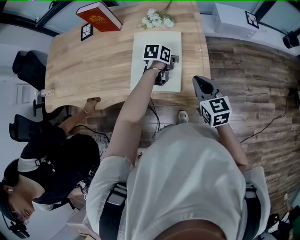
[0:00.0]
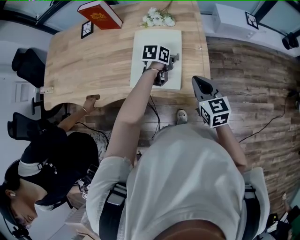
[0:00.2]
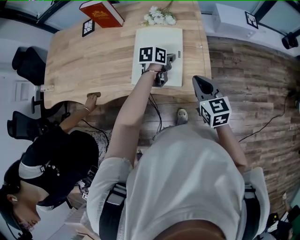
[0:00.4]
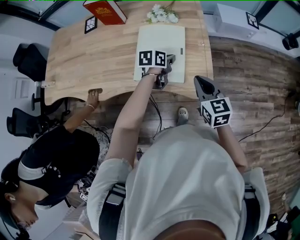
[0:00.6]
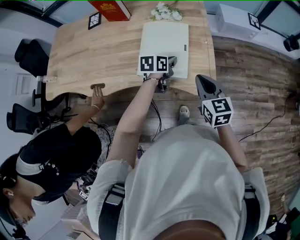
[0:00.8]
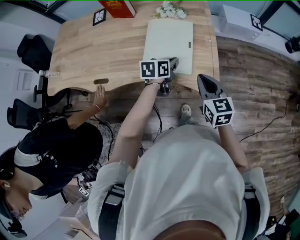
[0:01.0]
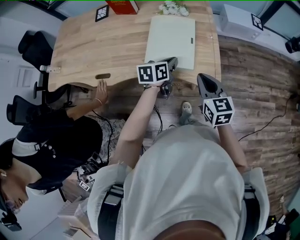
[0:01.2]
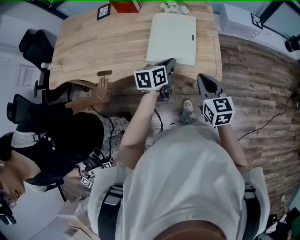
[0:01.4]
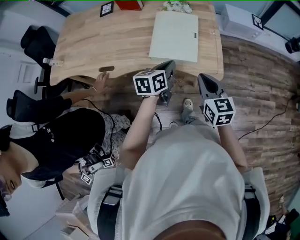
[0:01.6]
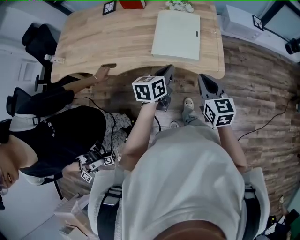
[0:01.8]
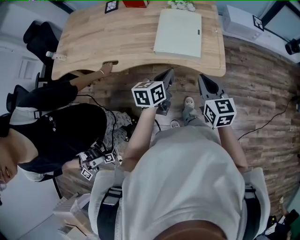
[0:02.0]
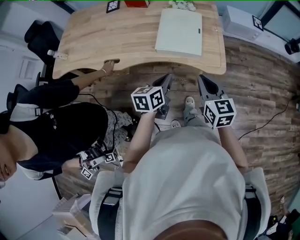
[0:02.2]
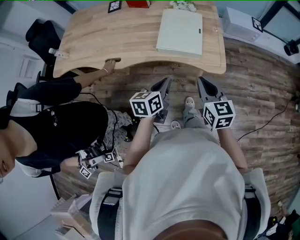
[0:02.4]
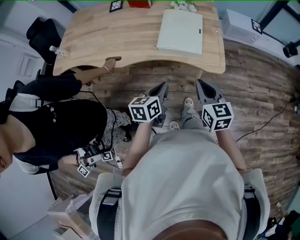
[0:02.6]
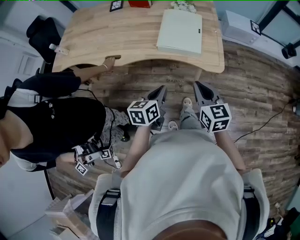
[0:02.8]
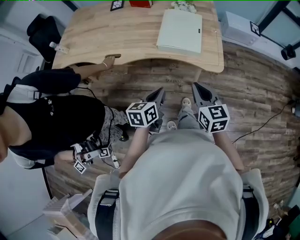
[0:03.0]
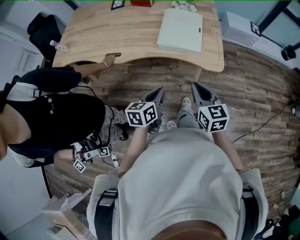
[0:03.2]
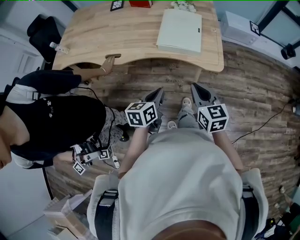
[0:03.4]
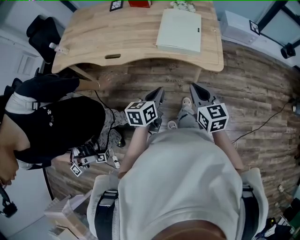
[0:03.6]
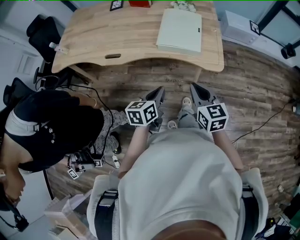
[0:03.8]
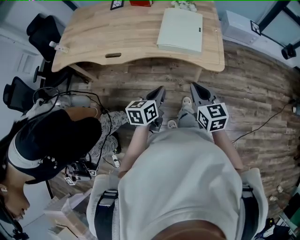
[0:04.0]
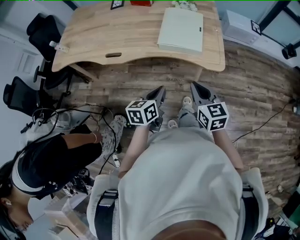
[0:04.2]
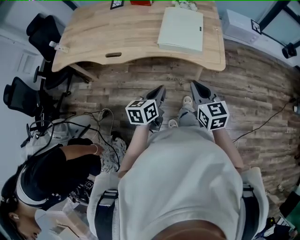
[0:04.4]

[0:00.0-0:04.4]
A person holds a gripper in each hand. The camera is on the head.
0:00.0 to 0:01.4: The right gripper heads backward, covering some 15 cm, while the left gripper heads backward and upward, covering approximately 20 cm, and changes its angle by about 30 degrees.
0:01.4 to 0:03.0: The left gripper moves backward, roughly 25 cm, while the right gripper travels backward by about 15 cm.
0:03.0 to 0:04.4: Both grippers stay about where they are.

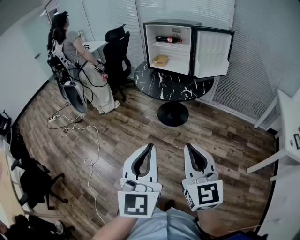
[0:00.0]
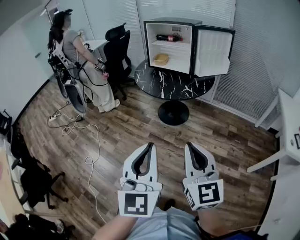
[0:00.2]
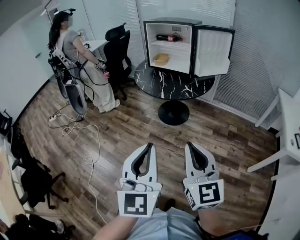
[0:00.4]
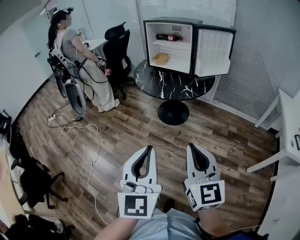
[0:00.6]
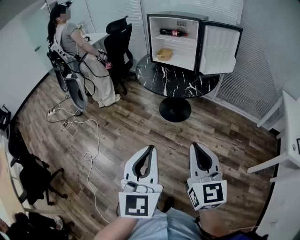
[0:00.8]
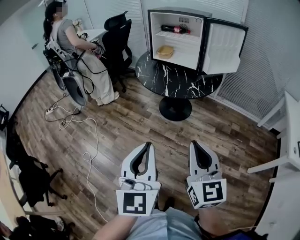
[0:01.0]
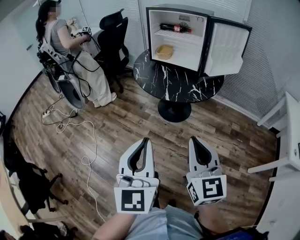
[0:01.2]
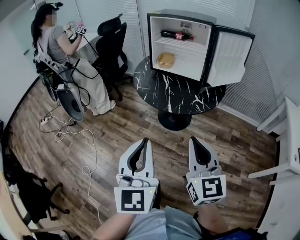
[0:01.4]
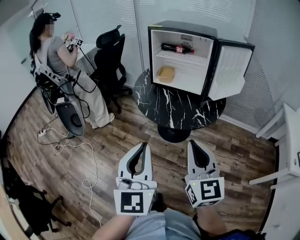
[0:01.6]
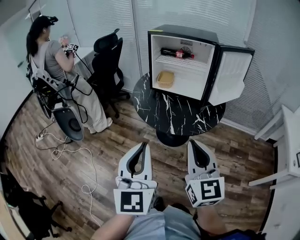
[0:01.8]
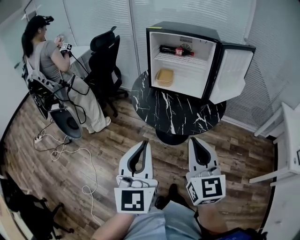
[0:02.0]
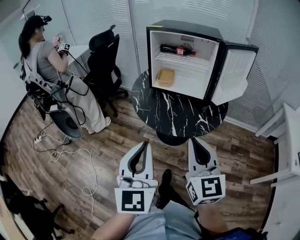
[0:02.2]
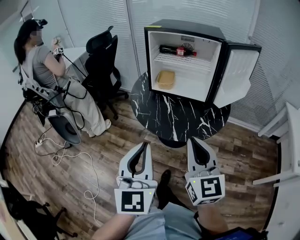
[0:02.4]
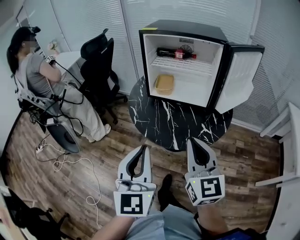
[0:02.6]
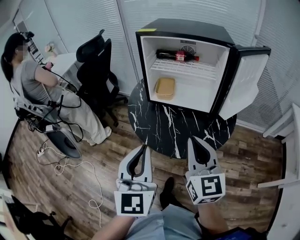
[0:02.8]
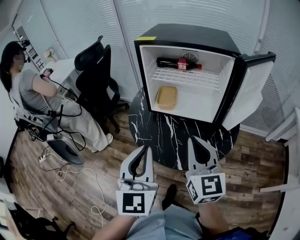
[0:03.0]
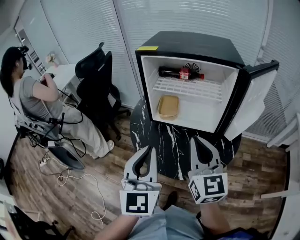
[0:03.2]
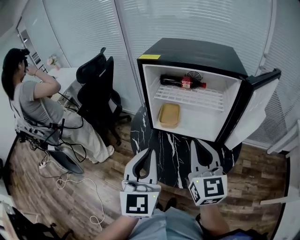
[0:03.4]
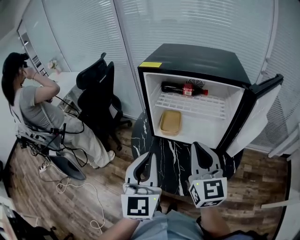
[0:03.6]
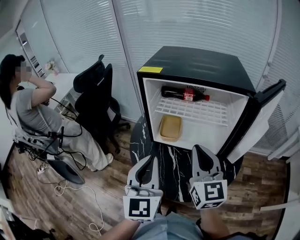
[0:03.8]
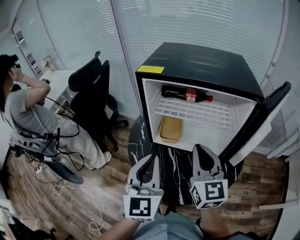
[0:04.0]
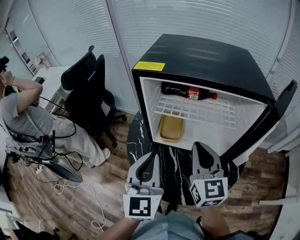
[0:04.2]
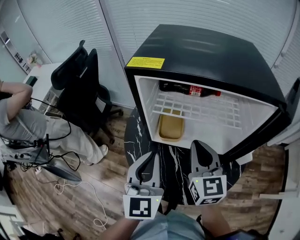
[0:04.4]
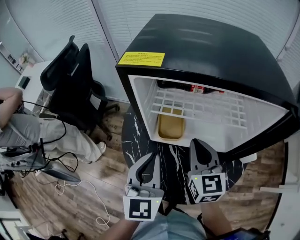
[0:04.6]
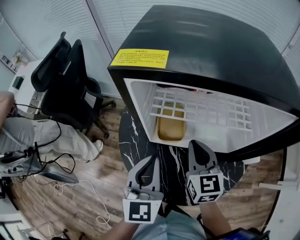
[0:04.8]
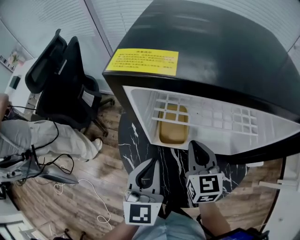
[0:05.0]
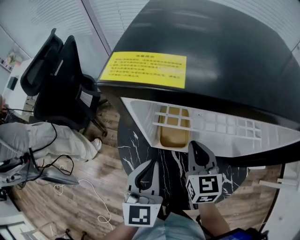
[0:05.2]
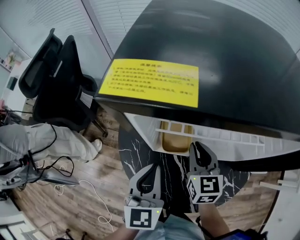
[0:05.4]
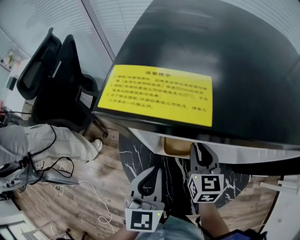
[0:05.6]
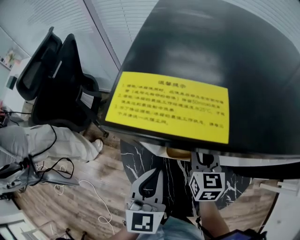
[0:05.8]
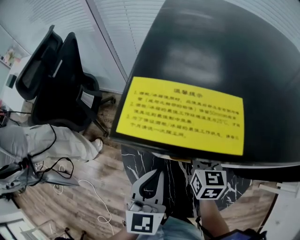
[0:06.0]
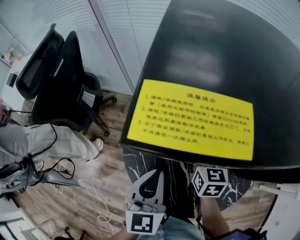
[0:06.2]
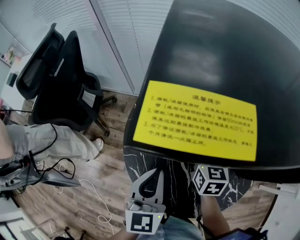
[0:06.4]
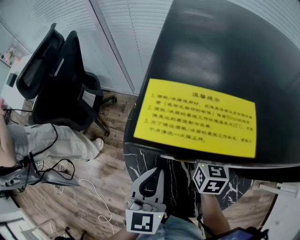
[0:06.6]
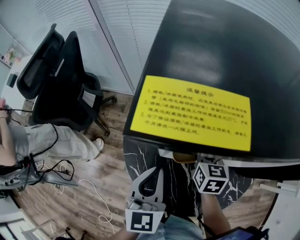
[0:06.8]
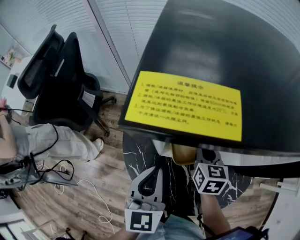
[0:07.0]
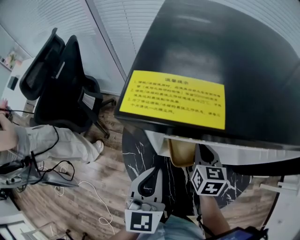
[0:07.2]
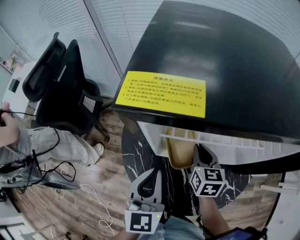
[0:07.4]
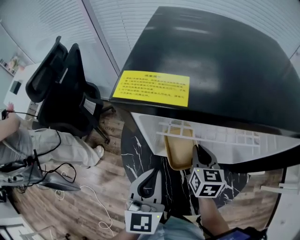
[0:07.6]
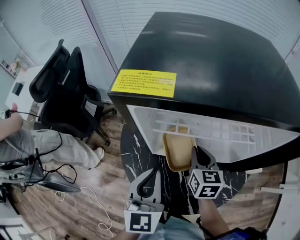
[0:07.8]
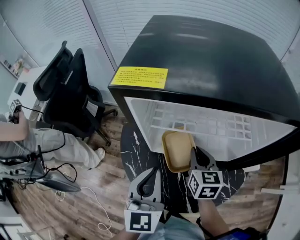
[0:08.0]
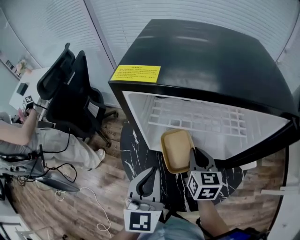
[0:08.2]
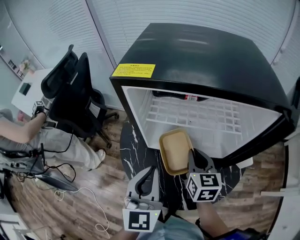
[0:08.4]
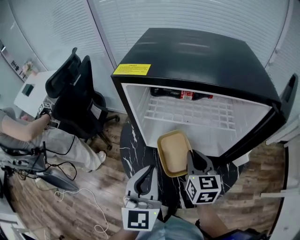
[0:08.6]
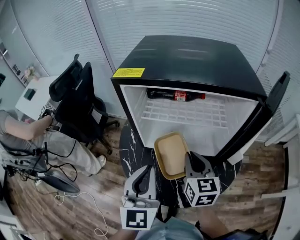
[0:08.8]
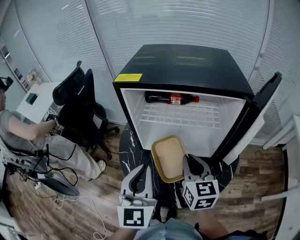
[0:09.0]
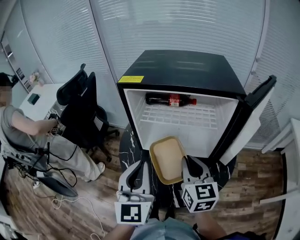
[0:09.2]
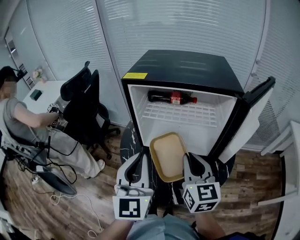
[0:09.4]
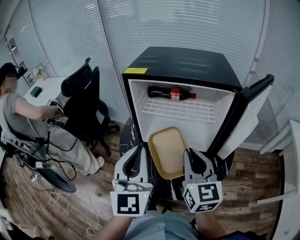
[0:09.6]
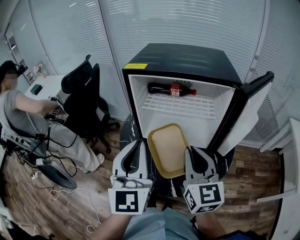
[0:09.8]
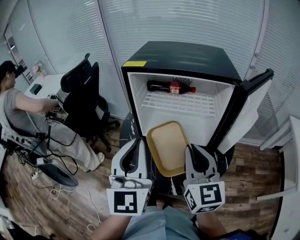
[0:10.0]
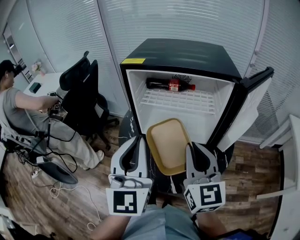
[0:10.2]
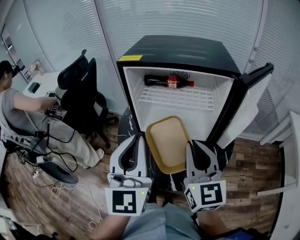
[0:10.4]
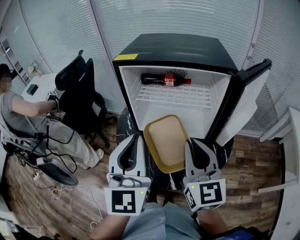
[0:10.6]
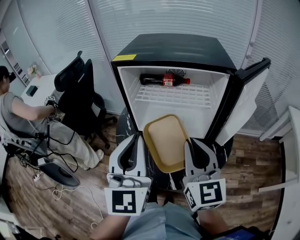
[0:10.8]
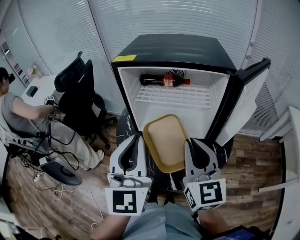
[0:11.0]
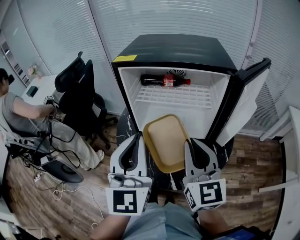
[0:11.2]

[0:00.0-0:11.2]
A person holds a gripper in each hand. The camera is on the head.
0:00.0 to 0:01.6: The two grippers go approximately 30 cm forward.
0:01.6 to 0:03.2: Both grippers move forward, about 35 cm.
0:03.2 to 0:04.8: The grippers both shift forward and downward by approximately 25 cm. The right gripper changes its angle by roughly 20 degrees.
0:04.8 to 0:06.4: The right gripper is displaced downward and forward by roughly 15 cm, and rotates approximately 20 degrees; the left gripper shifts some 5 cm downward.
0:06.4 to 0:08.0: The right gripper moves backward and upward, some 10 cm. The left gripper moves upward and backward, about 10 cm.
0:08.0 to 0:09.6: The two grippers go about 20 cm upward and backward. The left gripper turns by approximately 20 degrees; the right gripper changes its angle by some 30 degrees.
0:09.6 to 0:11.2: The grippers stay close to where they were, moving slightly.

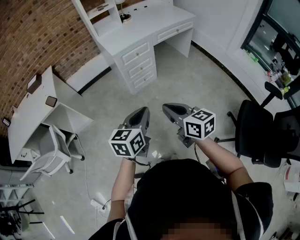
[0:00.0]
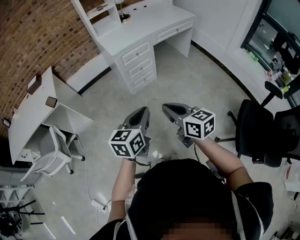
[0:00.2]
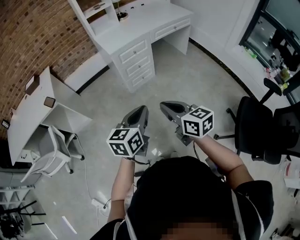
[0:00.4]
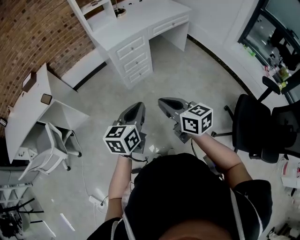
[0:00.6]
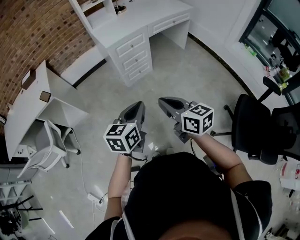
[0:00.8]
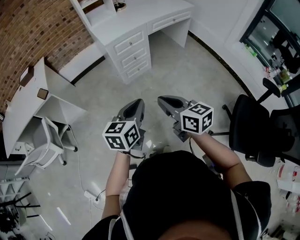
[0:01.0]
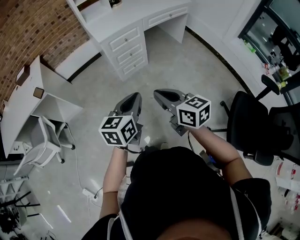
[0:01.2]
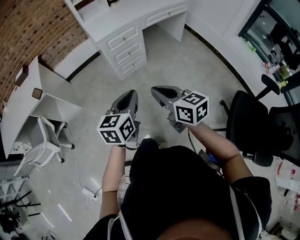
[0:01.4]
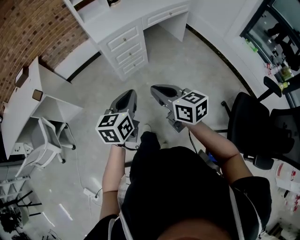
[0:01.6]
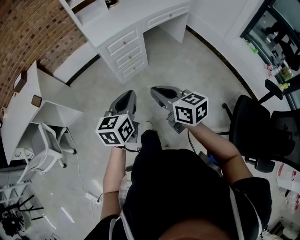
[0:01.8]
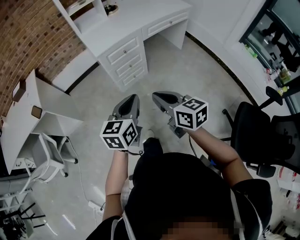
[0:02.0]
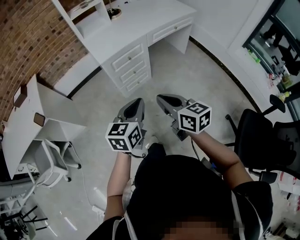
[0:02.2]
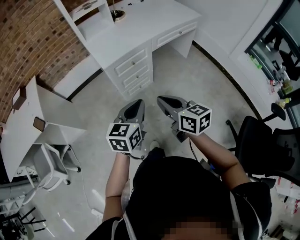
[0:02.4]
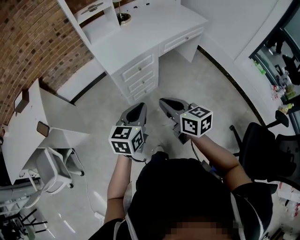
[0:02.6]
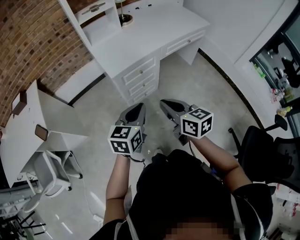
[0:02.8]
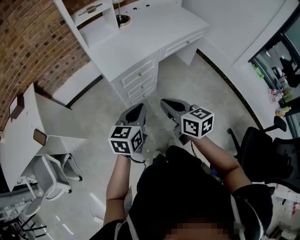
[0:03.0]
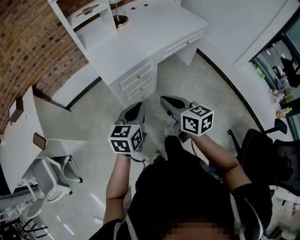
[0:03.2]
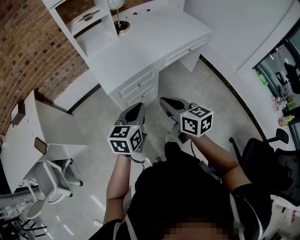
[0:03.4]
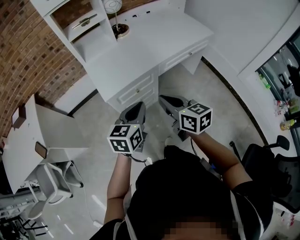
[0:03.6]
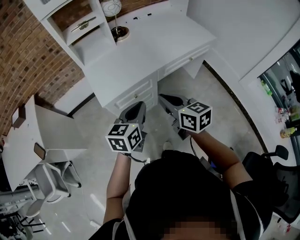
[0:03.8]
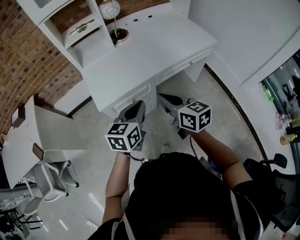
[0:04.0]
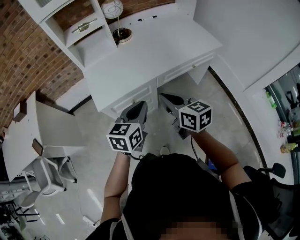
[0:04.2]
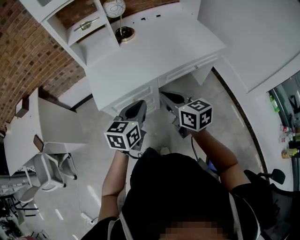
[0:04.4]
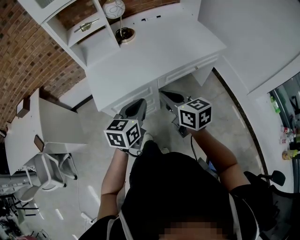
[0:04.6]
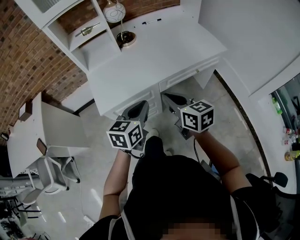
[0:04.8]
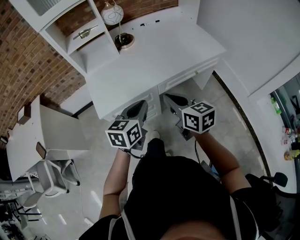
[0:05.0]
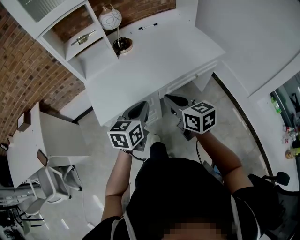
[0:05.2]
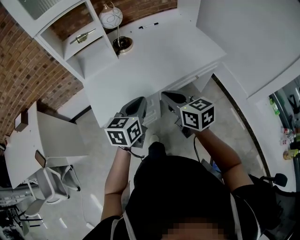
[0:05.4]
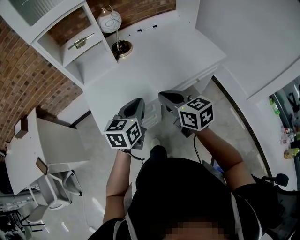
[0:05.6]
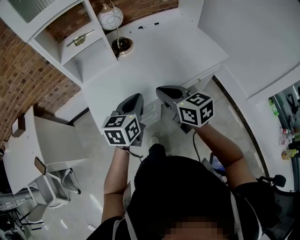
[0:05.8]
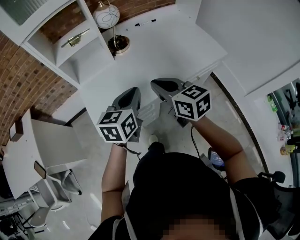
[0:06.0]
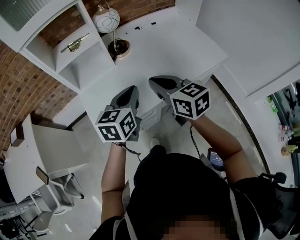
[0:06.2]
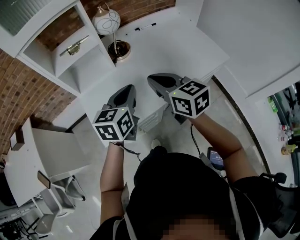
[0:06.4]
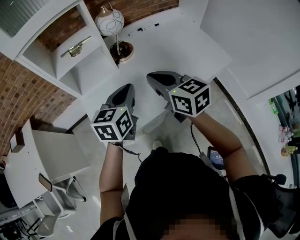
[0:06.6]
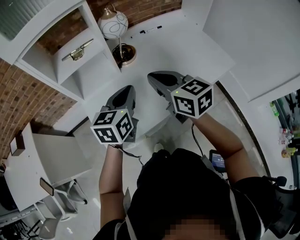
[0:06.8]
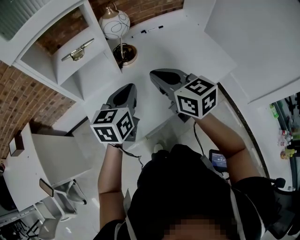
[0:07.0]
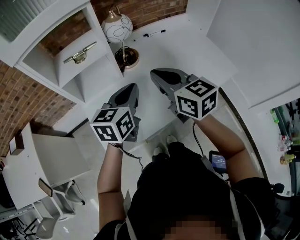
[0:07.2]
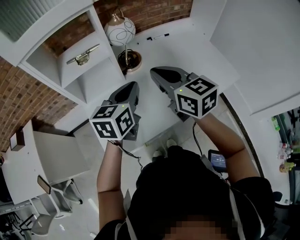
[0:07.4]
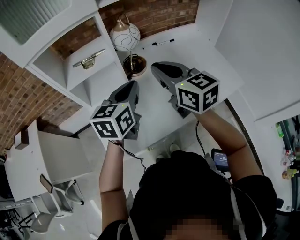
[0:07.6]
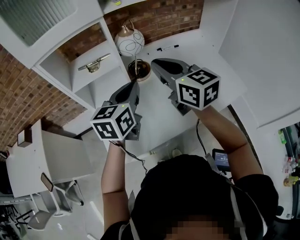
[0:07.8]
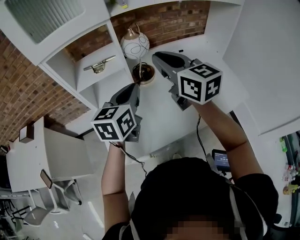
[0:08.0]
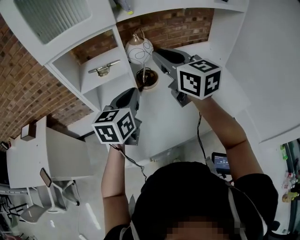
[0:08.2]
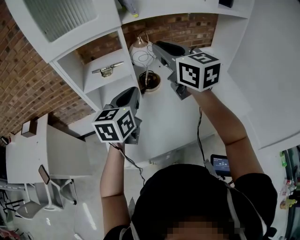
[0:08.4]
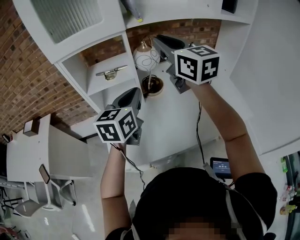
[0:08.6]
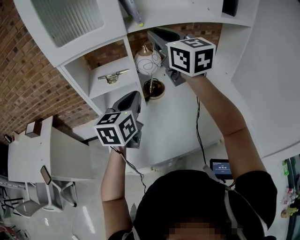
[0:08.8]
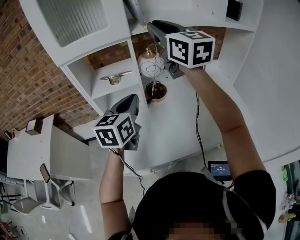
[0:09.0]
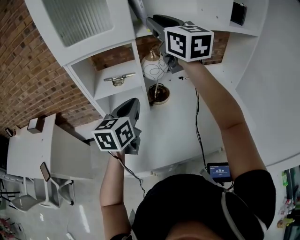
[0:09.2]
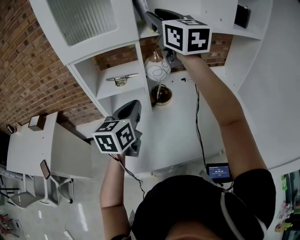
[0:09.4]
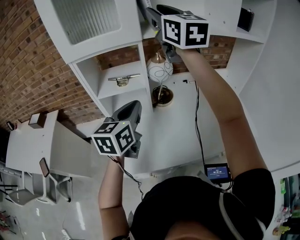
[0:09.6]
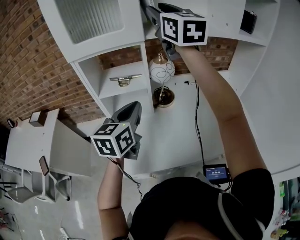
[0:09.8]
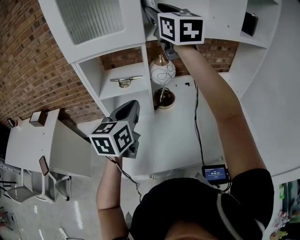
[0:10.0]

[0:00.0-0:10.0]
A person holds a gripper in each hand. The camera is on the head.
0:00.0 to 0:01.4: Both grippers move to the right, roughly 5 cm.
0:01.4 to 0:02.8: Both grippers move forward, approximately 30 cm.
0:02.8 to 0:04.2: The two grippers go approximately 30 cm forward and to the right.
0:04.2 to 0:05.8: Both grippers travel together forward, roughly 15 cm.
0:05.8 to 0:07.2: Both grippers move forward, roughly 20 cm.
0:07.2 to 0:08.6: The left gripper shifts roughly 10 cm upward; the right gripper is displaced upward and forward by some 25 cm, and changes its angle by approximately 20 degrees.
0:08.6 to 0:10.0: The right gripper goes approximately 15 cm upward and forward, and opens up.
